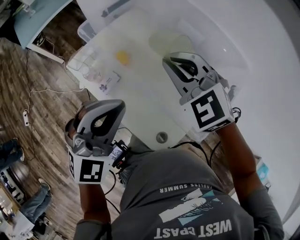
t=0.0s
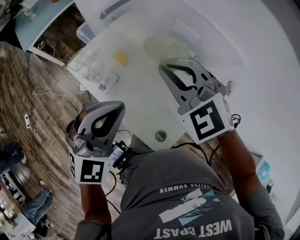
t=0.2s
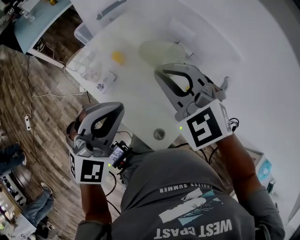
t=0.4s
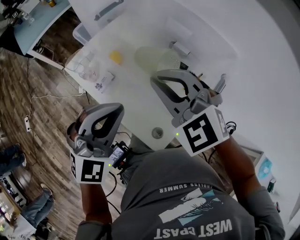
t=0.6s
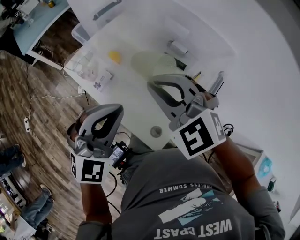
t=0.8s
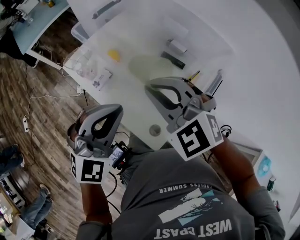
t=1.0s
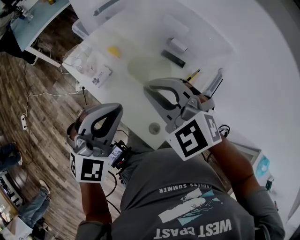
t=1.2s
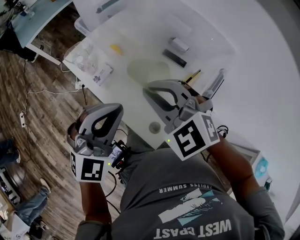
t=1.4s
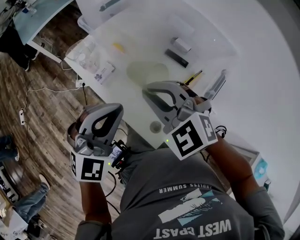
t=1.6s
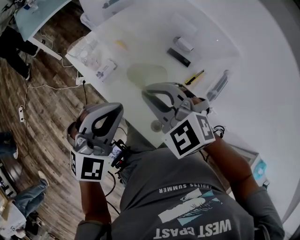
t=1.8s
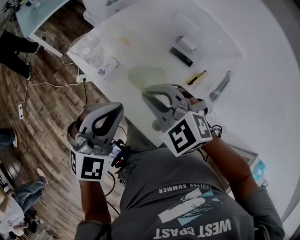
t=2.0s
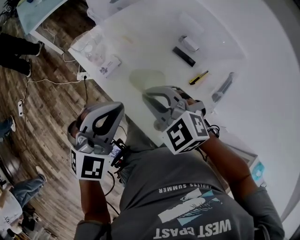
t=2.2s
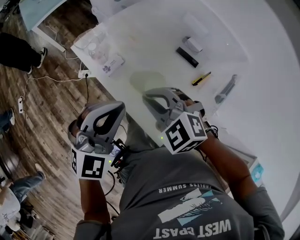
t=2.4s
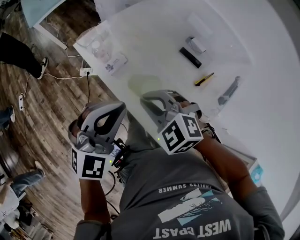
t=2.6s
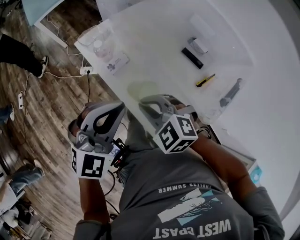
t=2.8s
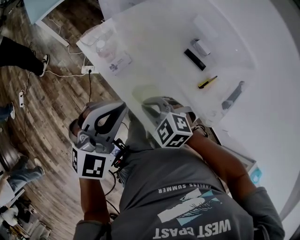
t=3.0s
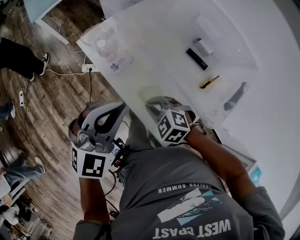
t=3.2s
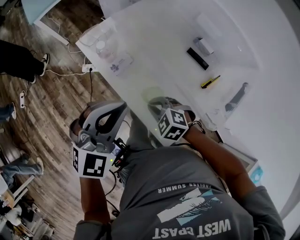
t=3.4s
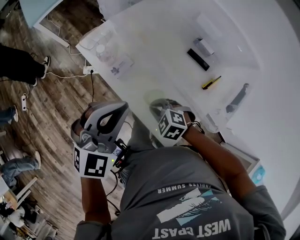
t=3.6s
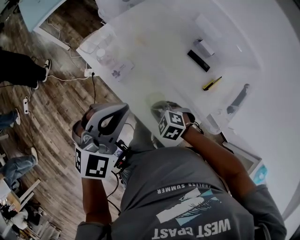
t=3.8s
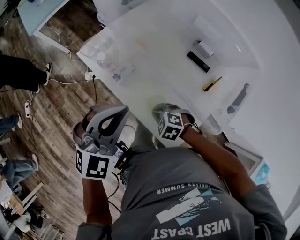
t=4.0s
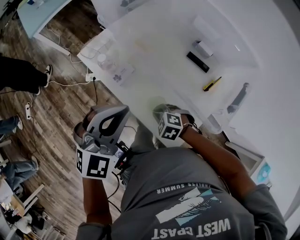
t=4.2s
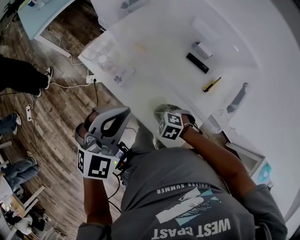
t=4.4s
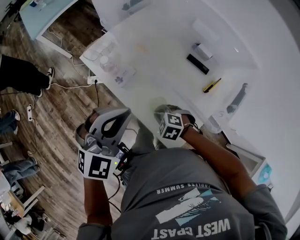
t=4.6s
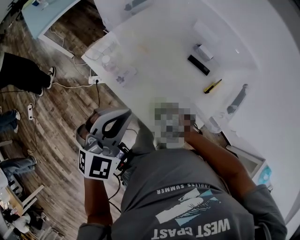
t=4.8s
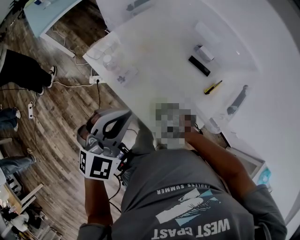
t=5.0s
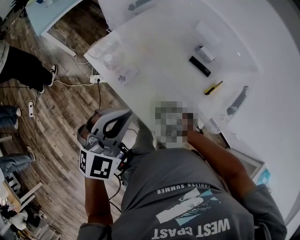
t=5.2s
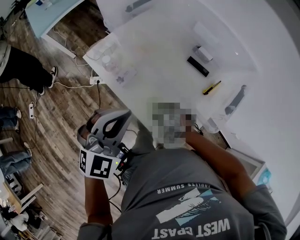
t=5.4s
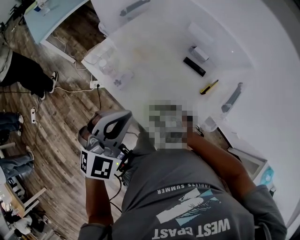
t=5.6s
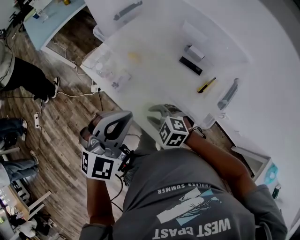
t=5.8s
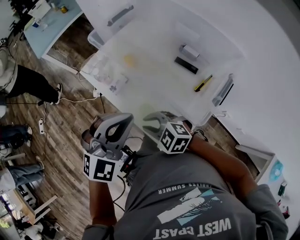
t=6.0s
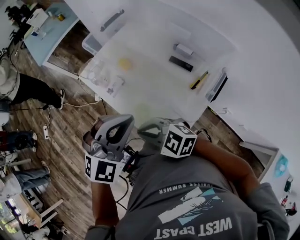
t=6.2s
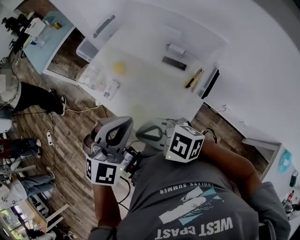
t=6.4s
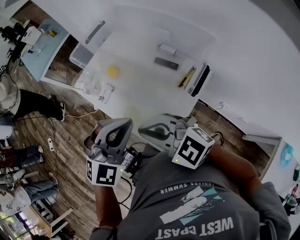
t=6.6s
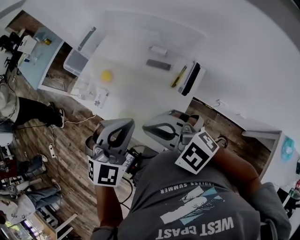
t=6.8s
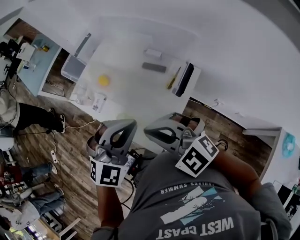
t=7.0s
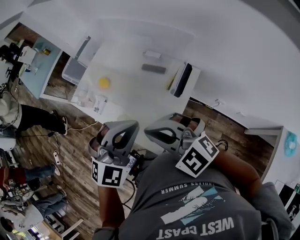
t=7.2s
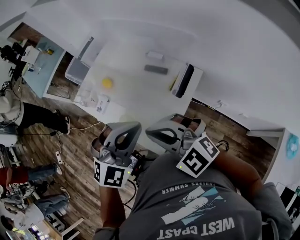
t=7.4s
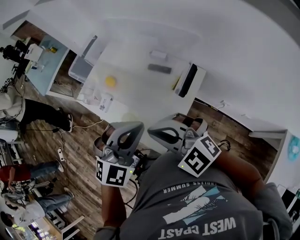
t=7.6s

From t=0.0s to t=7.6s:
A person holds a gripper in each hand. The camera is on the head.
From t=0.0s to t=1.6s: The right gripper shifts roughly 15 cm backward. Meanwhile the left gripper is displaced backward by approximately 10 cm.
From t=1.6s to t=3.0s: The left gripper is displaced to the left by about 5 cm; the right gripper moves downward, approximately 15 cm, and rotates some 20 degrees.
From t=3.0s to t=4.6s: The right gripper shifts some 15 cm downward.
From t=4.6s to t=6.0s: The right gripper goes approximately 15 cm upward, and rotates about 30 degrees; the left gripper heads to the right, covering roughly 5 cm.
From t=6.0s to t=7.6s: The right gripper is displaced upward and to the right by some 25 cm, changes its angle by about 30 degrees, and closes its fingers. The left gripper shifts roughly 20 cm to the right and backward.

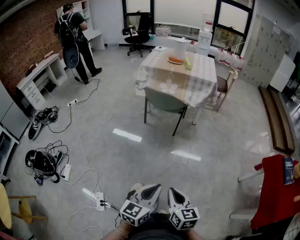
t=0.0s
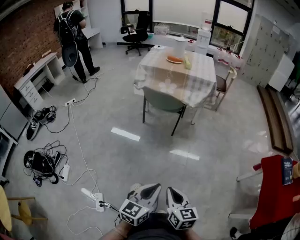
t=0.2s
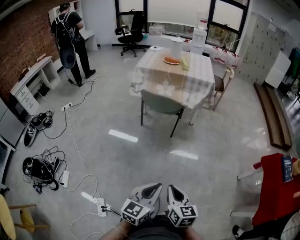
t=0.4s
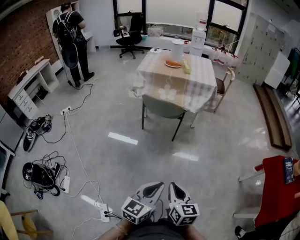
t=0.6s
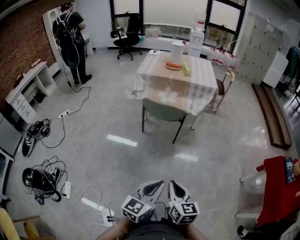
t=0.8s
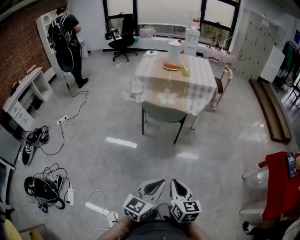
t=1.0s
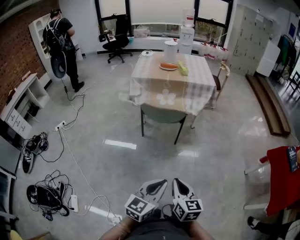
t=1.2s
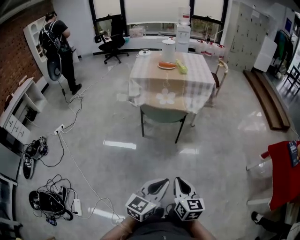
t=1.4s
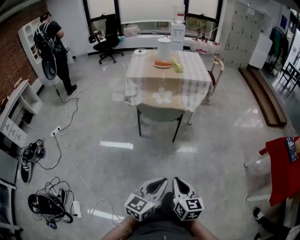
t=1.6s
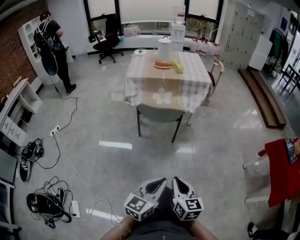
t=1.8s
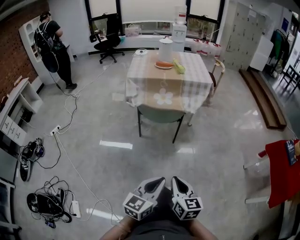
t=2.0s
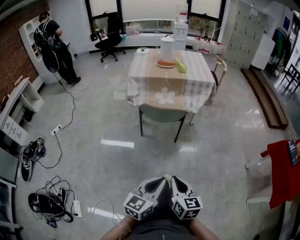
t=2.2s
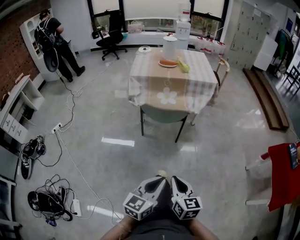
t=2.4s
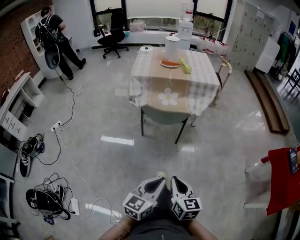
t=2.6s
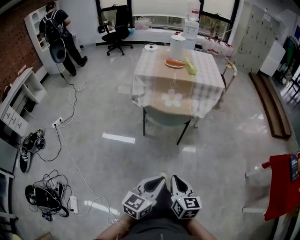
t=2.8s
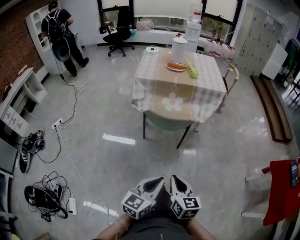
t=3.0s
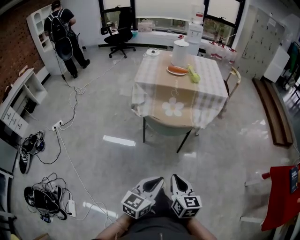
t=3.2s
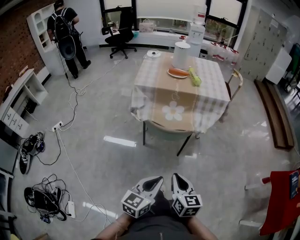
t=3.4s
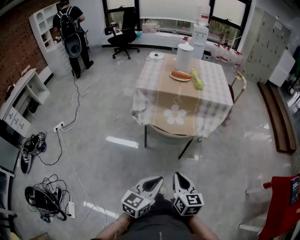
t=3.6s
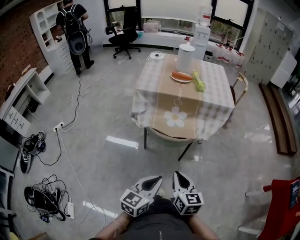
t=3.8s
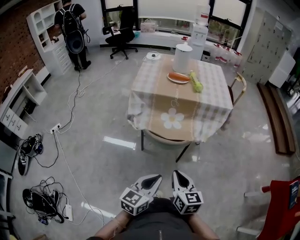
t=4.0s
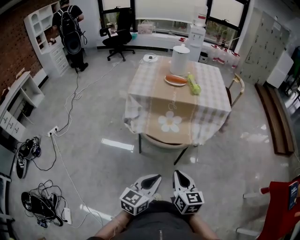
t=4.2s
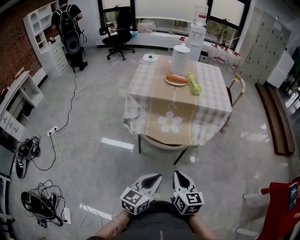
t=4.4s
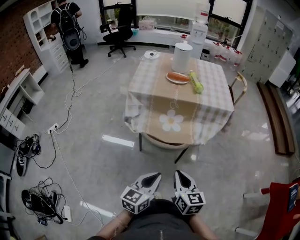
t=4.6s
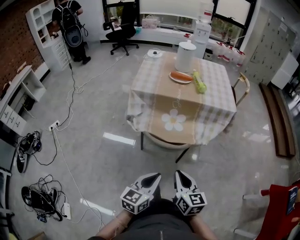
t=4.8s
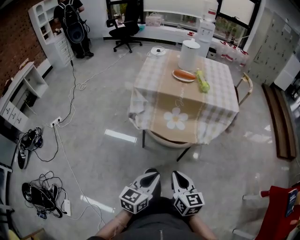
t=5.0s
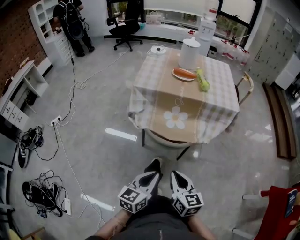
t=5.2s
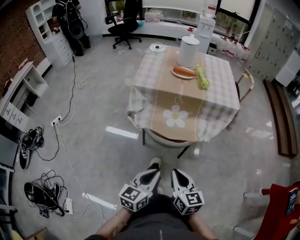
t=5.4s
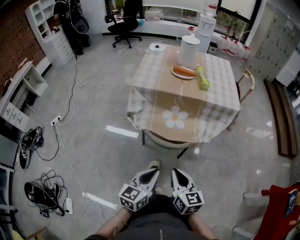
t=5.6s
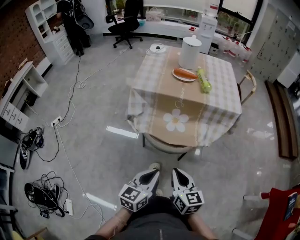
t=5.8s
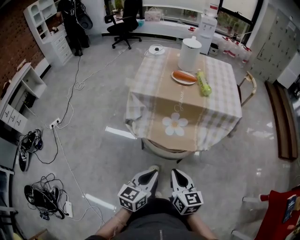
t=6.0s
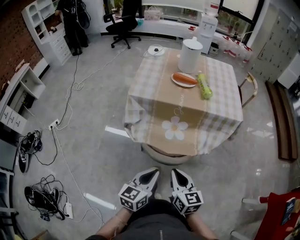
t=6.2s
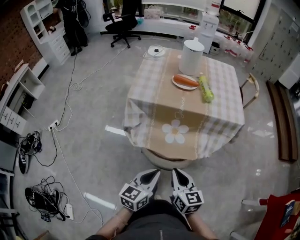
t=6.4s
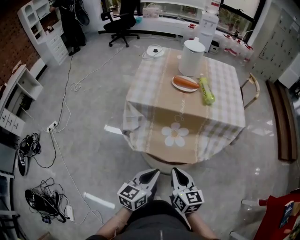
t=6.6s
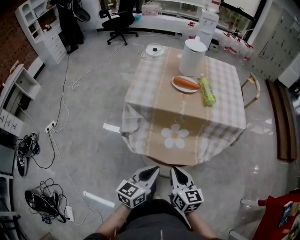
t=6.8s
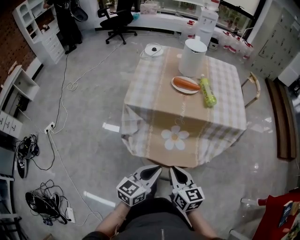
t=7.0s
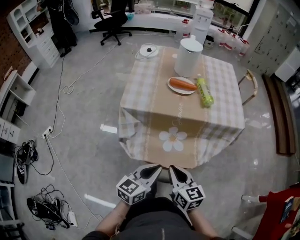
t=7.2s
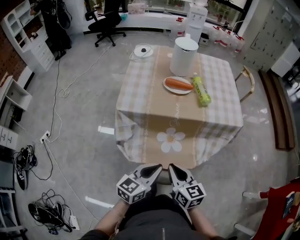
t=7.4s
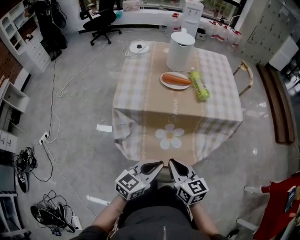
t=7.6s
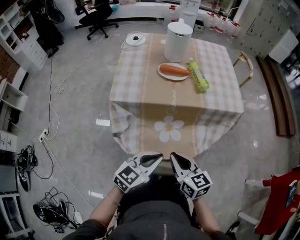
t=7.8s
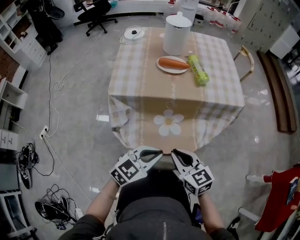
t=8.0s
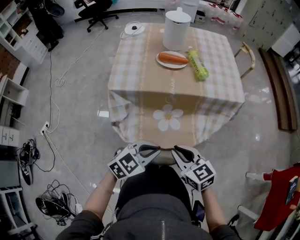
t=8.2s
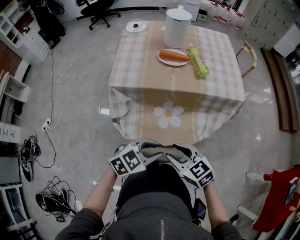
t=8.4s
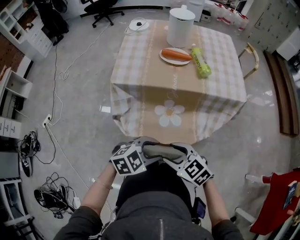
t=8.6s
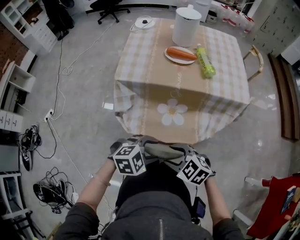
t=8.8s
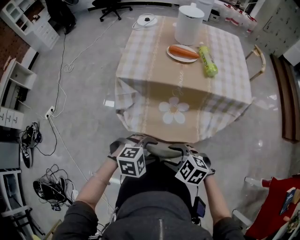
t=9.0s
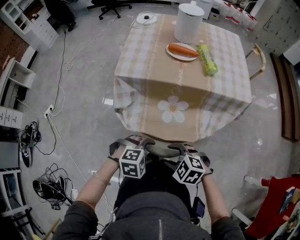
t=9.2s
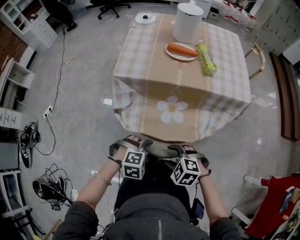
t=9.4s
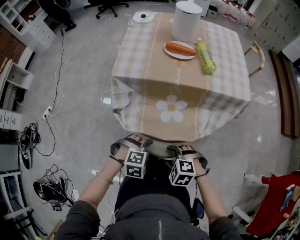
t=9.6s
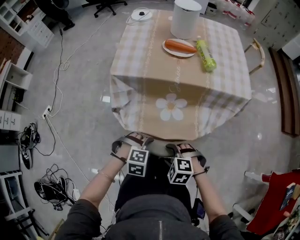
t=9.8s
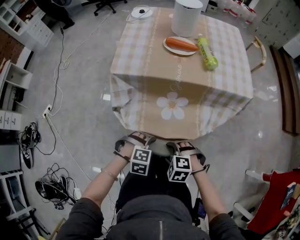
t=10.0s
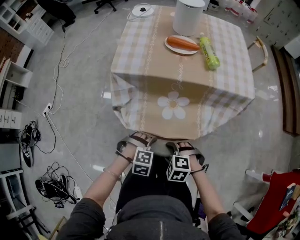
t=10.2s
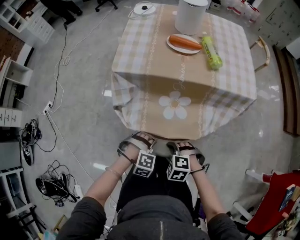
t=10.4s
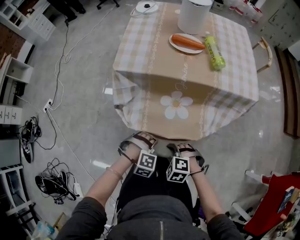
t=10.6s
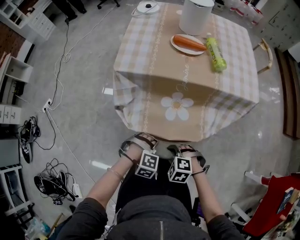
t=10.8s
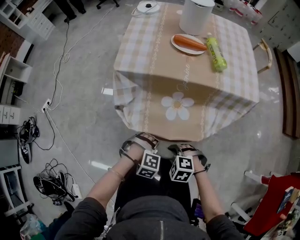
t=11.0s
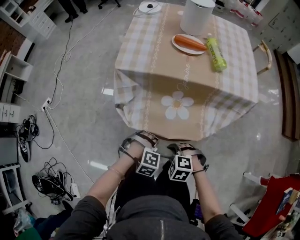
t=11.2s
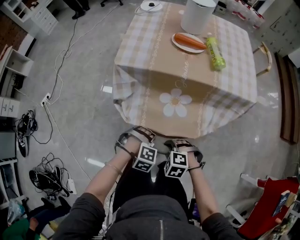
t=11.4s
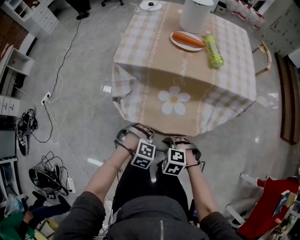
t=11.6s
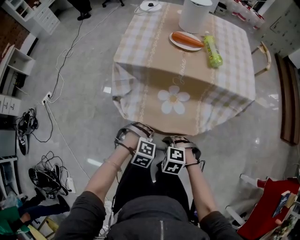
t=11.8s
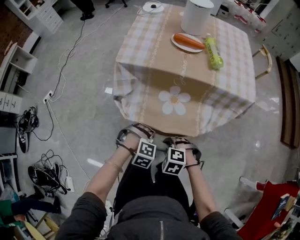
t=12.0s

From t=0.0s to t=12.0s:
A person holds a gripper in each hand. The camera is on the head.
From t=0.0s to t=1.6s: The two grippers go some 25 cm to the left and forward.
From t=1.6s to t=3.0s: Both grippers travel together forward and to the left, about 10 cm.
From t=3.0s to t=4.4s: Both grippers travel together forward, roughly 20 cm.
From t=4.4s to t=6.0s: The two grippers go roughly 5 cm forward.
From t=6.0s to t=7.6s: The grippers both shift forward by some 15 cm. The left gripper changes its angle by some 20 degrees.
From t=7.6s to t=9.0s: The right gripper ends up some 10 cm from where it was, swivels some 70 degrees, and opens its fingers, while the left gripper travels downward by roughly 10 cm, tips its fingers downward by about 40 degrees, and opens its fingers.
From t=9.0s to t=10.4s: The grippers both shift downward by approximately 10 cm. The left gripper swivels roughly 30 degrees; the right gripper rotates approximately 20 degrees.
From t=10.4s to t=12.0s: The right gripper closes its fingers.

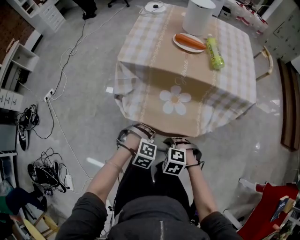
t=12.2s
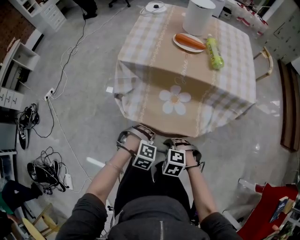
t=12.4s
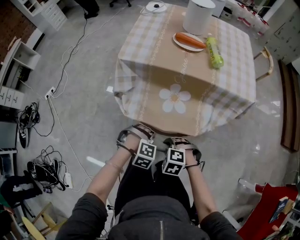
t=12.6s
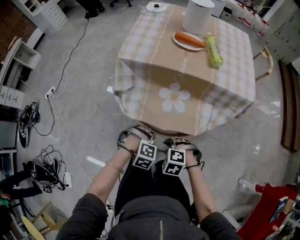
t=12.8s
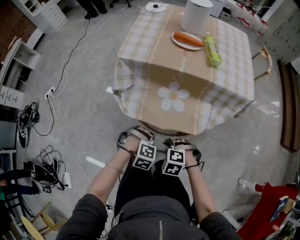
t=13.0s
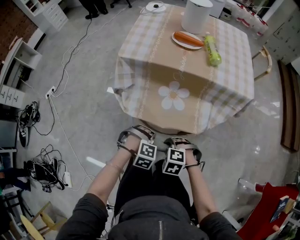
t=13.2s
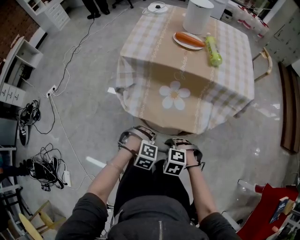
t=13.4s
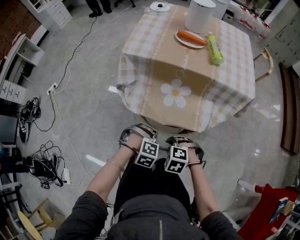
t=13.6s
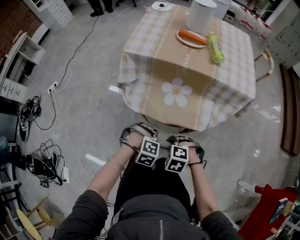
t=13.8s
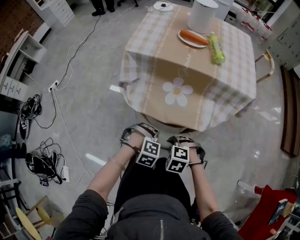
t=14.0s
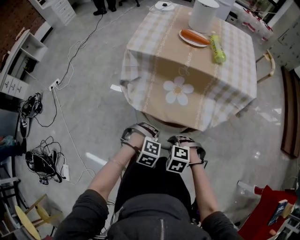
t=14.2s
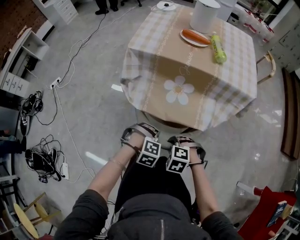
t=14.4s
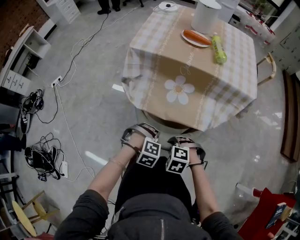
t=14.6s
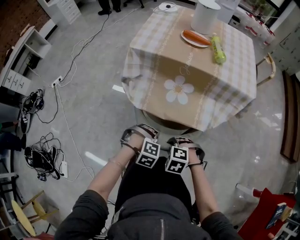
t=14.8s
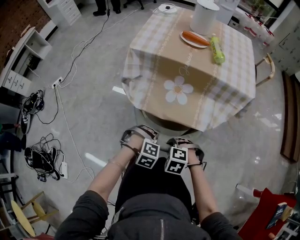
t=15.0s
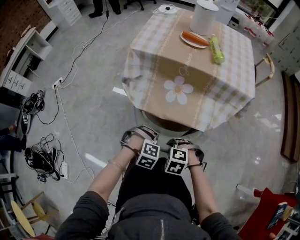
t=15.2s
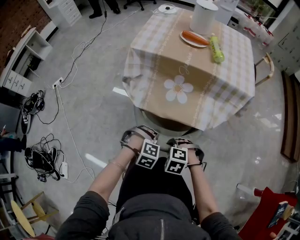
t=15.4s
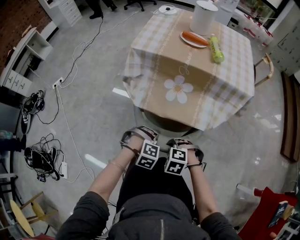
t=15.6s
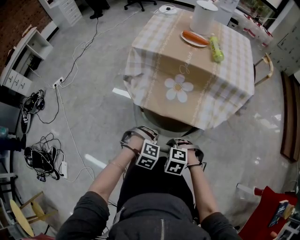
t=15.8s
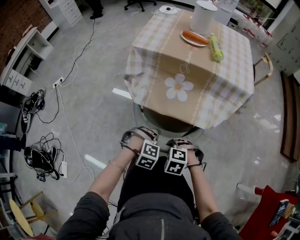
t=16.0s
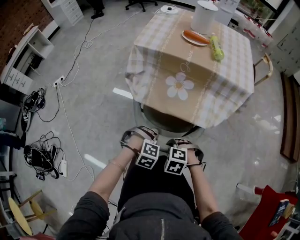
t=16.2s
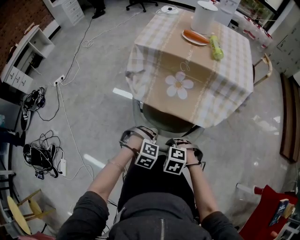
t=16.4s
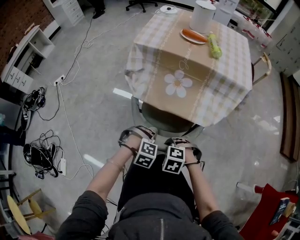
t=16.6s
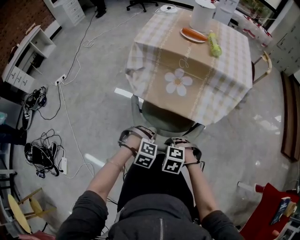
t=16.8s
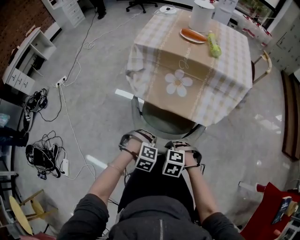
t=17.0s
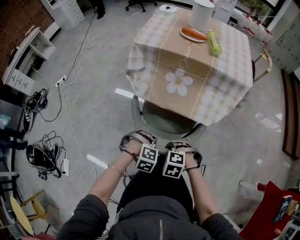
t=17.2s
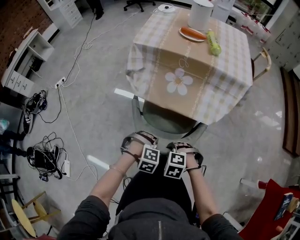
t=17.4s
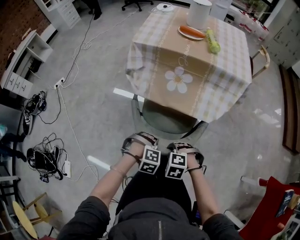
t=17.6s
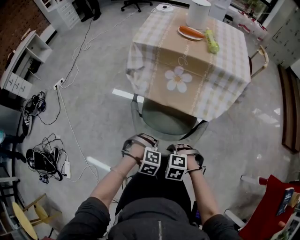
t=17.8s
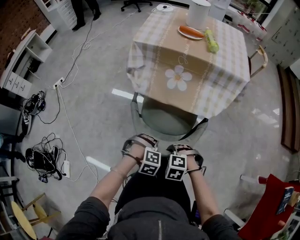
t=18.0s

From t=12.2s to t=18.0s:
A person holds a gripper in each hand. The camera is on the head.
From t=12.2s to t=13.6s: The left gripper shifts by about 5 cm.
From t=13.6s to t=15.0s: The grippers make only small movements.
From t=15.0s to t=16.6s: The left gripper ends up about 5 cm from where it was; the right gripper shifts by roughly 5 cm.
From t=16.6s to t=18.0s: The right gripper moves about 5 cm, while the left gripper shifts by about 5 cm.
